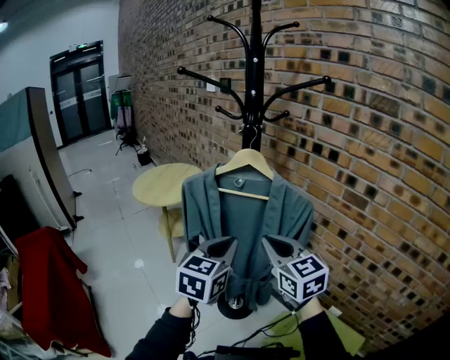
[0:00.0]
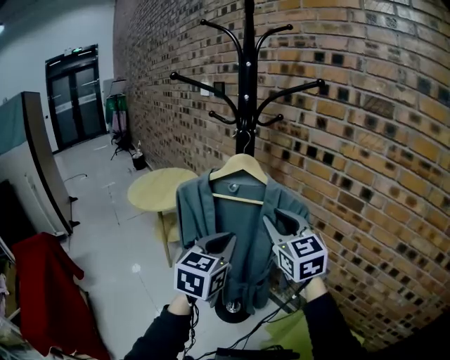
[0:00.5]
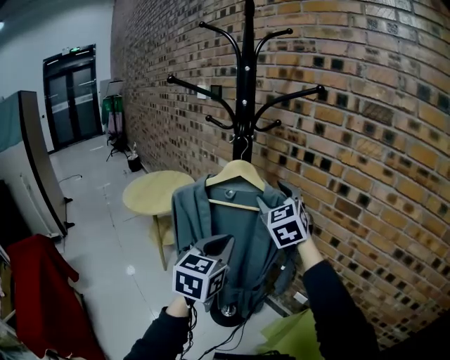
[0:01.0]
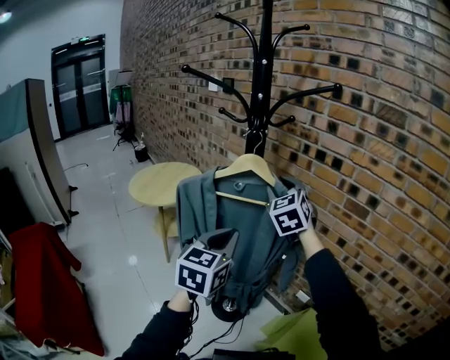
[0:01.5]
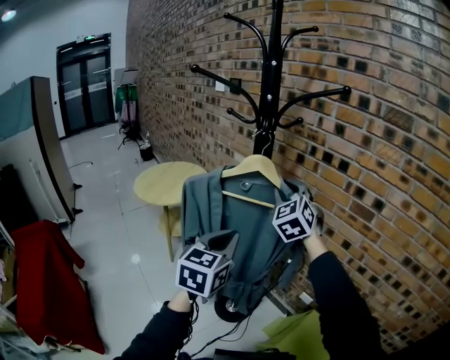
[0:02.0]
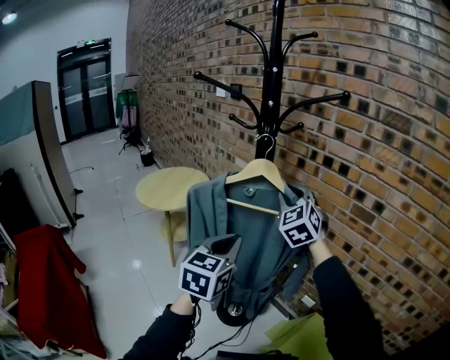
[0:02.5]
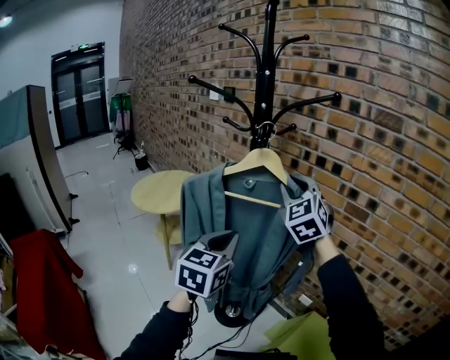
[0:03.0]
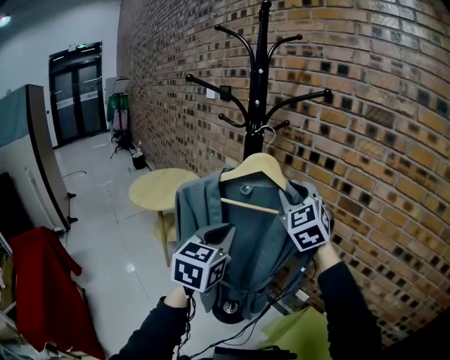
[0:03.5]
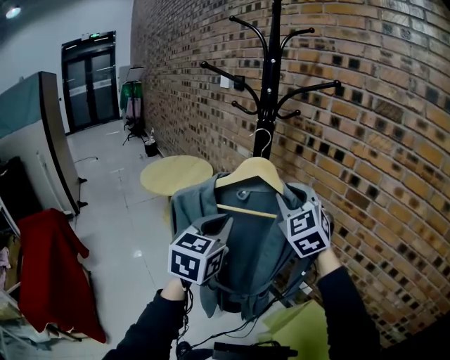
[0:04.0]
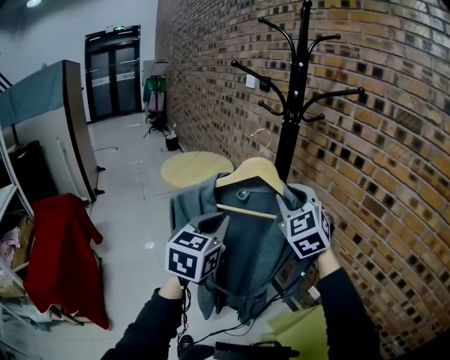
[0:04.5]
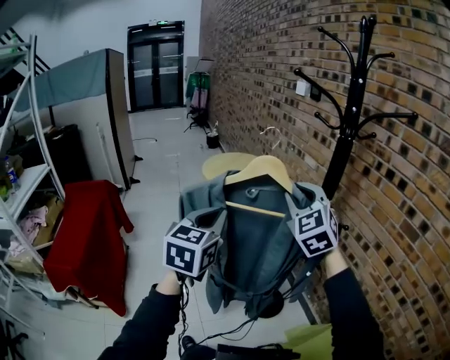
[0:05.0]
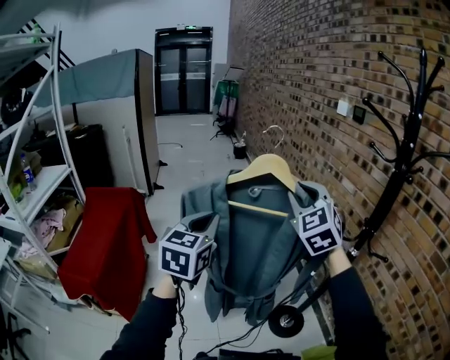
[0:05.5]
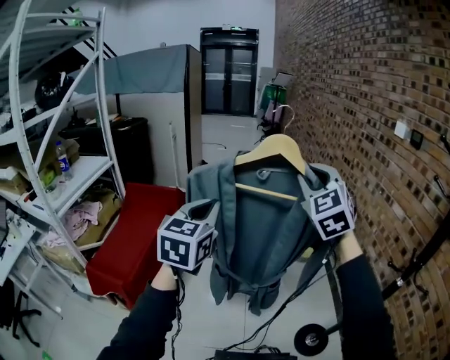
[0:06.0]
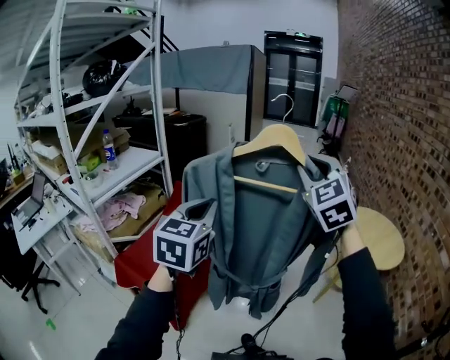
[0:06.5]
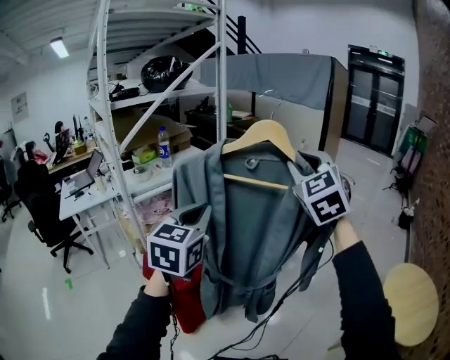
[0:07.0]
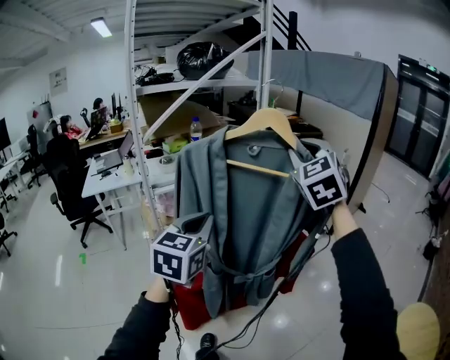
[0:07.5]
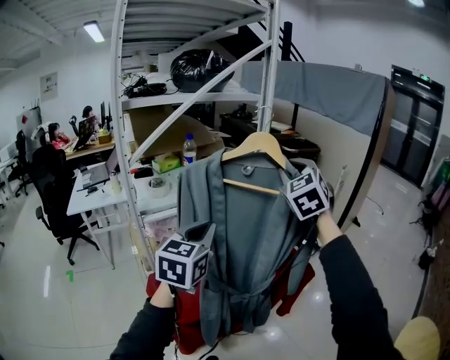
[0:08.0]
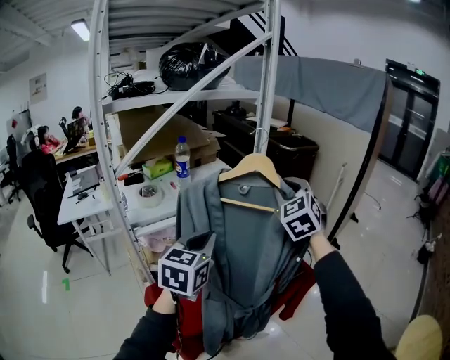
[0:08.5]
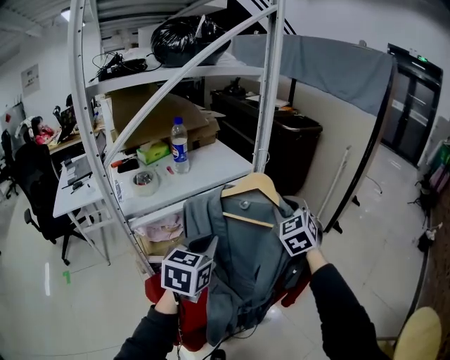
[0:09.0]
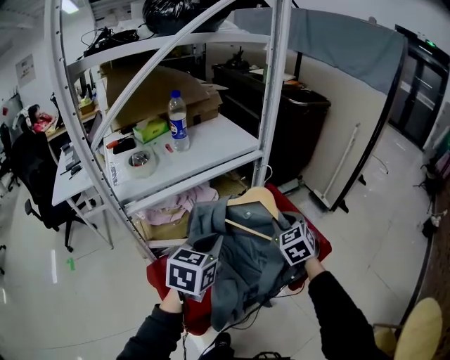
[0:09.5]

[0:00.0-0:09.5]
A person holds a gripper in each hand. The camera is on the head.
0:00.0 to 0:02.0: The right gripper heads forward and upward, covering approximately 20 cm, turns by some 40 degrees, and opens up. The left gripper changes place by about 5 cm.
0:02.0 to 0:04.0: The left gripper shifts some 5 cm backward. The right gripper heads backward, covering roughly 15 cm.
0:04.0 to 0:05.5: The pair of grippers is taken about 50 cm. The left gripper turns by roughly 30 degrees. Meanwhile the right gripper changes its angle by about 20 degrees.
0:05.5 to 0:07.5: Both grippers are carried approximately 80 cm. The right gripper turns by some 70 degrees. Meanwhile the left gripper changes its angle by roughly 70 degrees.
0:07.5 to 0:09.5: The right gripper is displaced downward and forward by roughly 50 cm, and changes its angle by approximately 30 degrees. Meanwhile the left gripper heads forward and downward, covering roughly 35 cm, and turns by approximately 20 degrees.

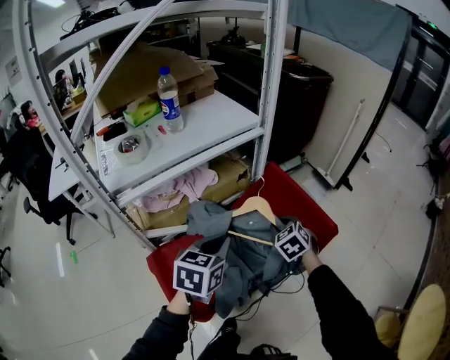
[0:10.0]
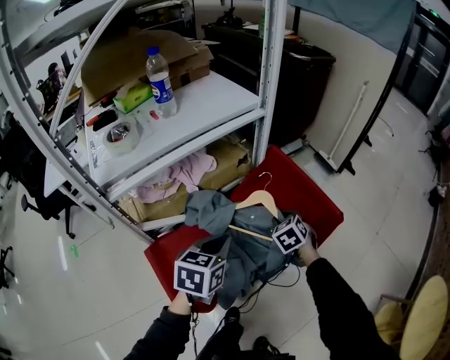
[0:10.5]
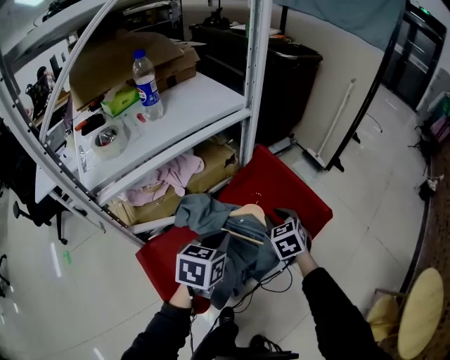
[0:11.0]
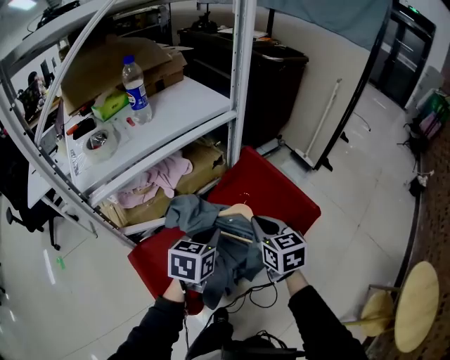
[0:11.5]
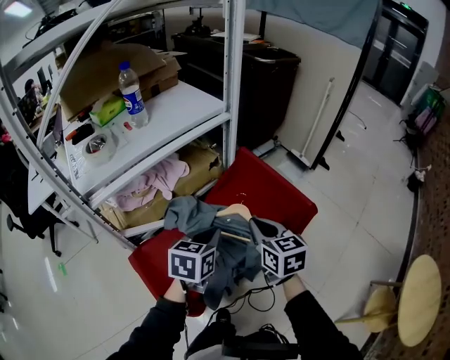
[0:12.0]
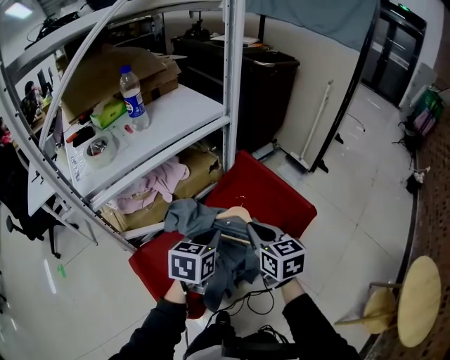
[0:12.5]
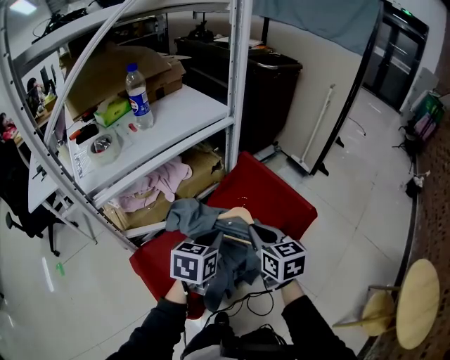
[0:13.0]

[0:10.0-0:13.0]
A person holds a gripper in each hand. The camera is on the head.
0:10.0 to 0:11.5: The right gripper travels upward and backward by roughly 10 cm, and changes its angle by about 40 degrees, while the left gripper shifts roughly 5 cm downward.
0:11.5 to 0:13.0: The grippers move only a little.

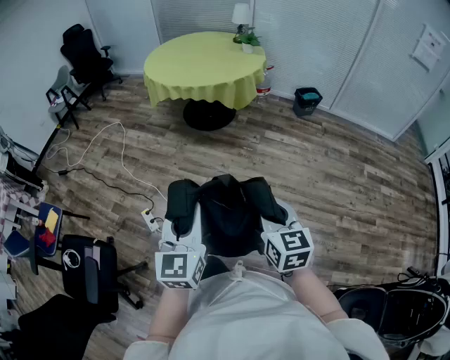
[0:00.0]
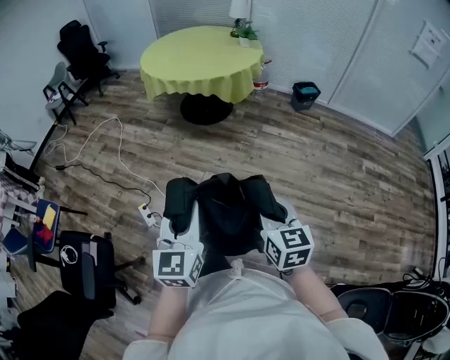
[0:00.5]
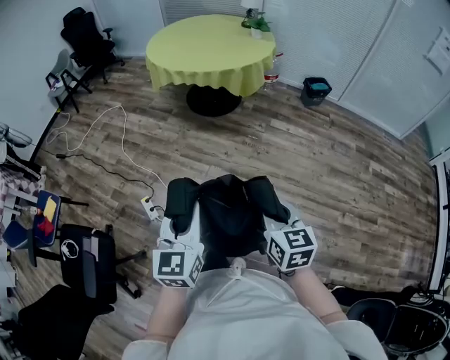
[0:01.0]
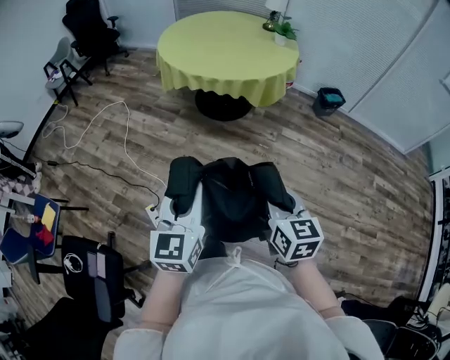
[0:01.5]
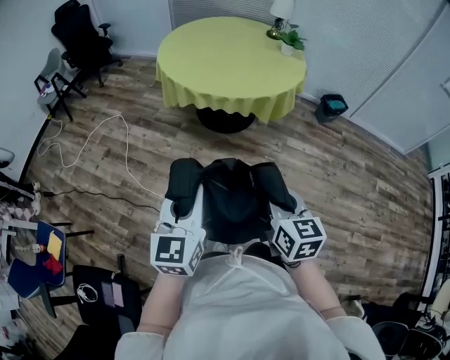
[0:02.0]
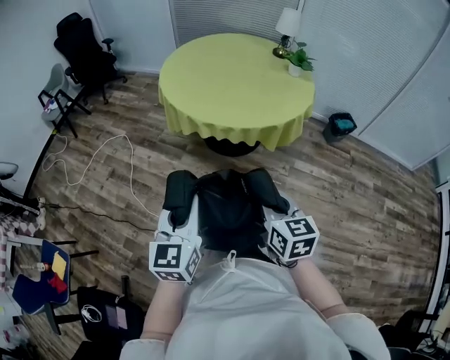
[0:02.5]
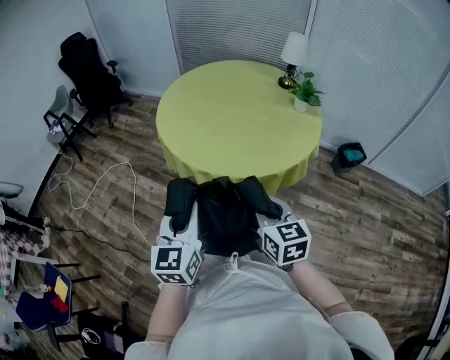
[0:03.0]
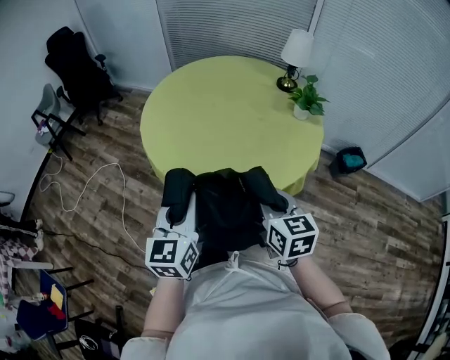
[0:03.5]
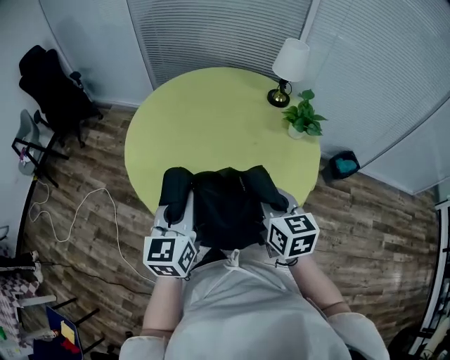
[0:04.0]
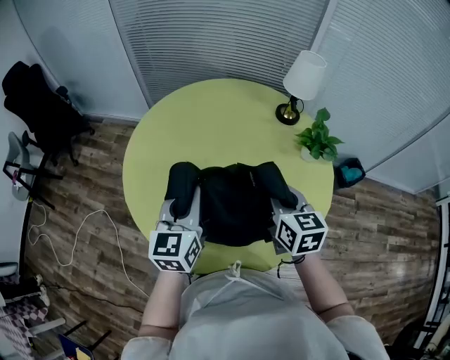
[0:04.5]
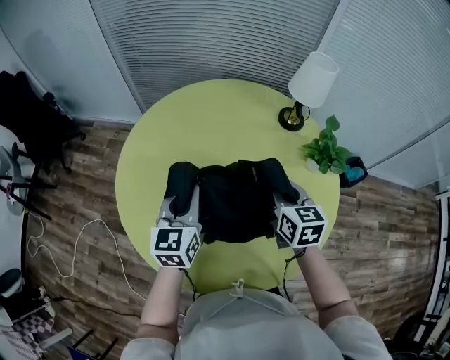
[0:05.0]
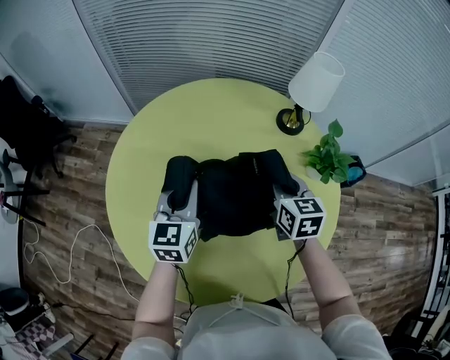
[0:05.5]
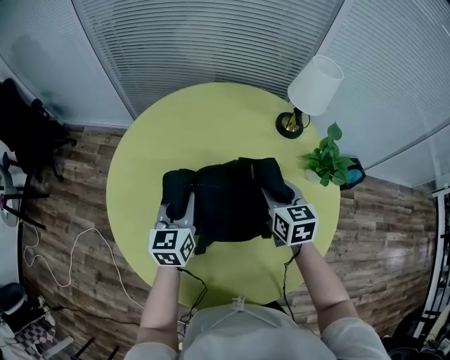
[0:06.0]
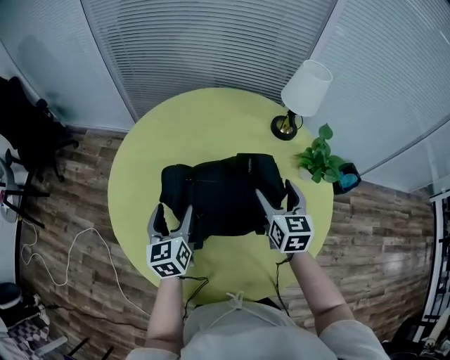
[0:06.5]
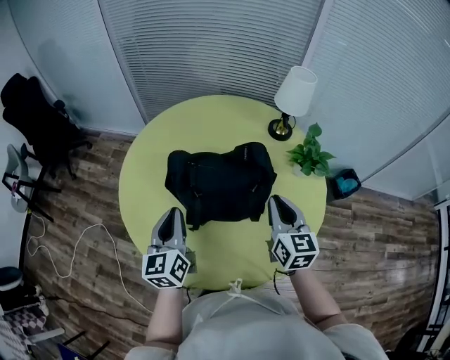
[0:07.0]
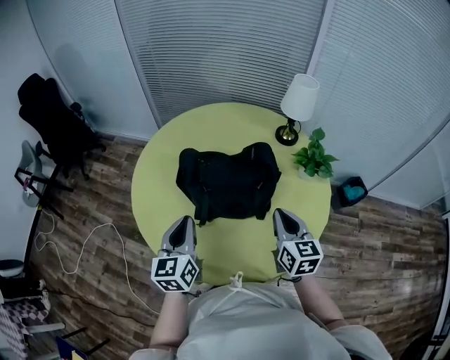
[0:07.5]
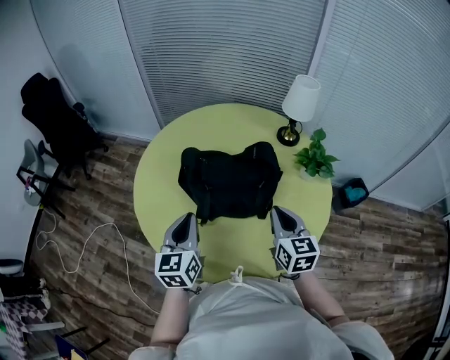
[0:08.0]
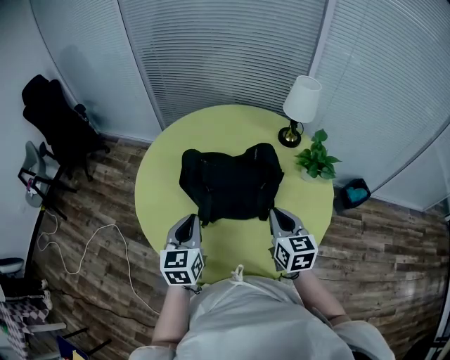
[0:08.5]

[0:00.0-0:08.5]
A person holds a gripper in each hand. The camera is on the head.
0:00.0 to 0:02.0: The pair of grippers is taken forward and to the left, some 40 cm.
0:02.0 to 0:04.0: Both grippers are carried forward, some 70 cm.
0:04.0 to 0:06.5: The left gripper is displaced forward and downward by approximately 35 cm, and opens. The right gripper goes about 30 cm forward, and opens its fingers.
0:06.5 to 0:08.5: The left gripper shifts roughly 20 cm backward and upward, and closes its fingers; the right gripper goes approximately 15 cm backward, and closes up.

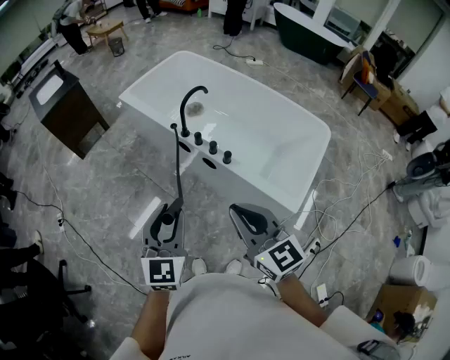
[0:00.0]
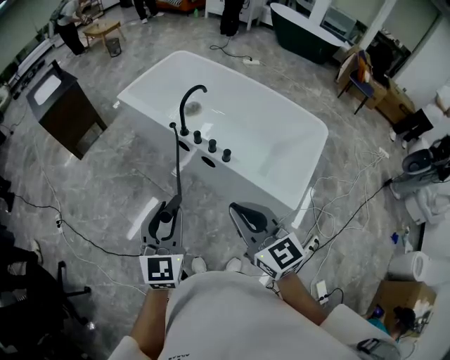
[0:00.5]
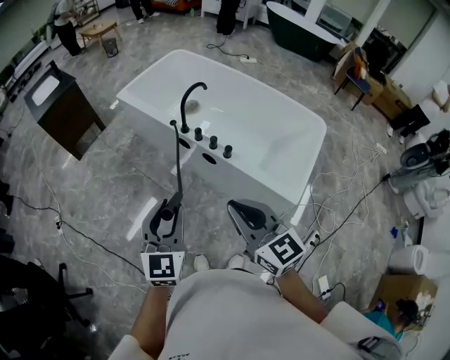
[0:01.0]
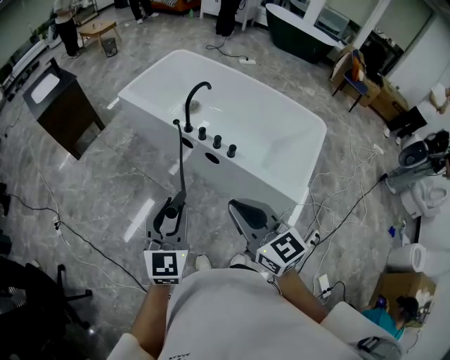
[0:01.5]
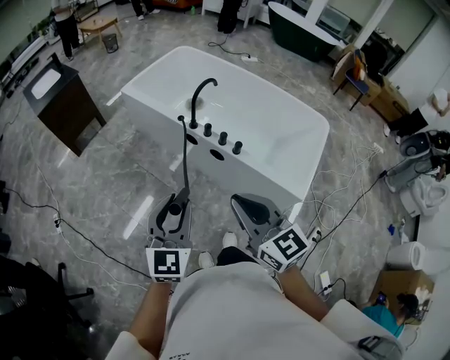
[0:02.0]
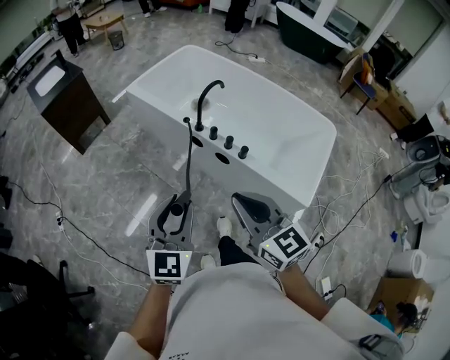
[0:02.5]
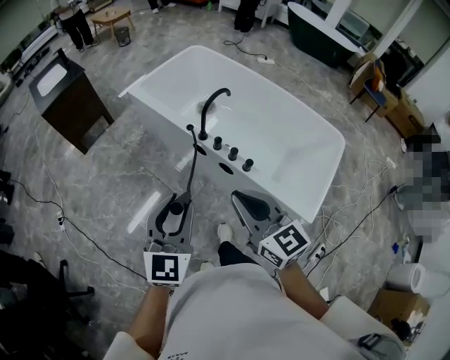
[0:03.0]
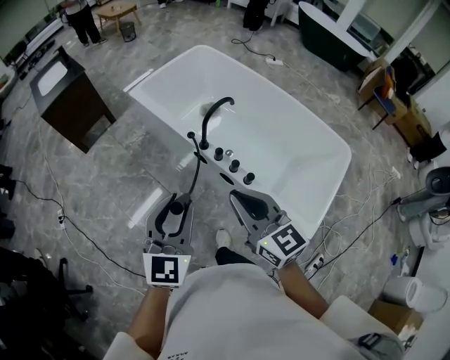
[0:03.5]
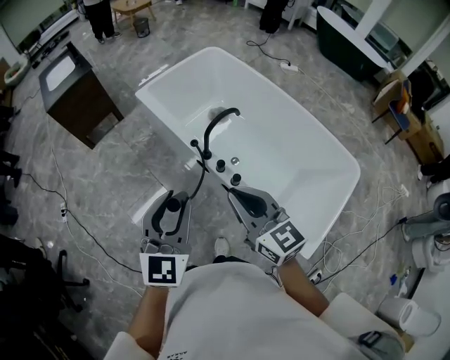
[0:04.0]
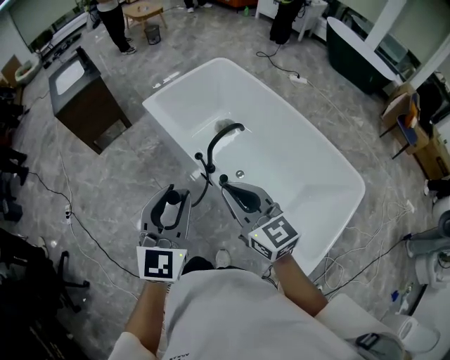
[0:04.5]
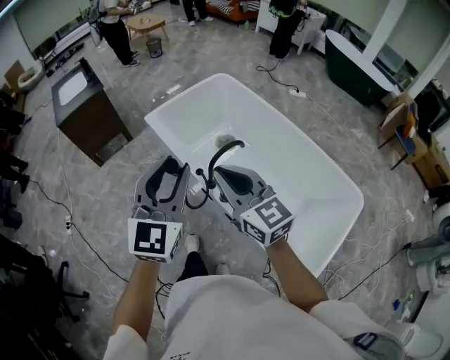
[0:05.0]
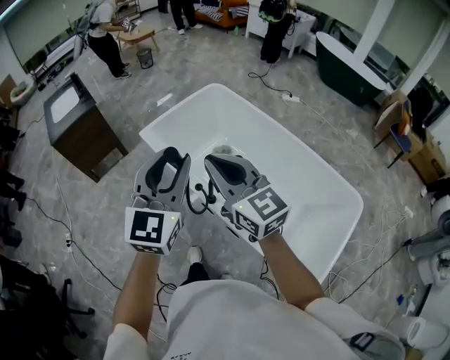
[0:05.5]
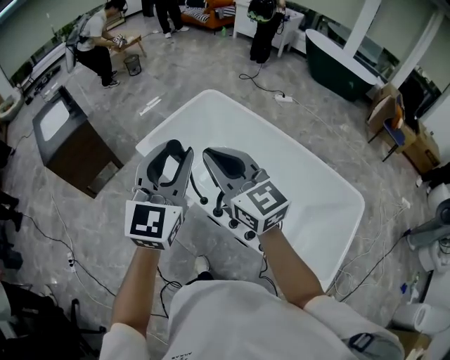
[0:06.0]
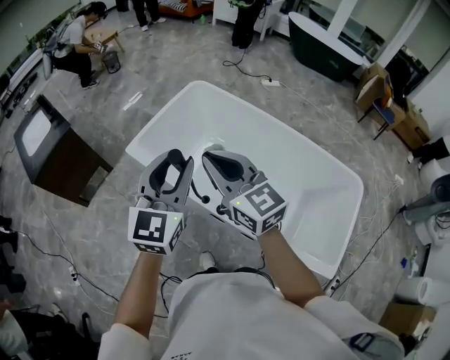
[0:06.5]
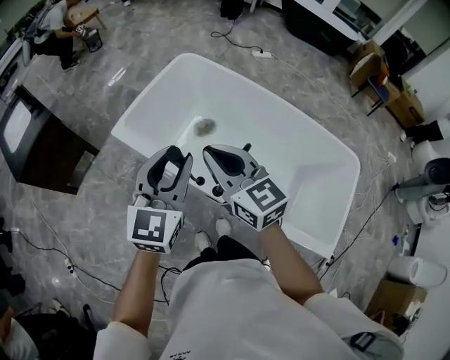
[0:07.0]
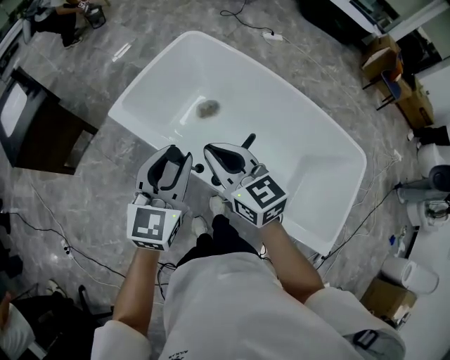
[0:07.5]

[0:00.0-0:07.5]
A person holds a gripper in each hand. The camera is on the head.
0:00.0 to 0:02.0: Both grippers move to the left, roughly 10 cm.
0:02.0 to 0:04.0: The left gripper goes some 25 cm forward and to the right; the right gripper shifts about 25 cm forward.
0:04.0 to 0:05.5: Both grippers travel together forward and upward, roughly 25 cm.
0:05.5 to 0:07.5: The two grippers go roughly 20 cm downward and forward. The left gripper swivels approximately 20 degrees; the right gripper rotates about 20 degrees.
